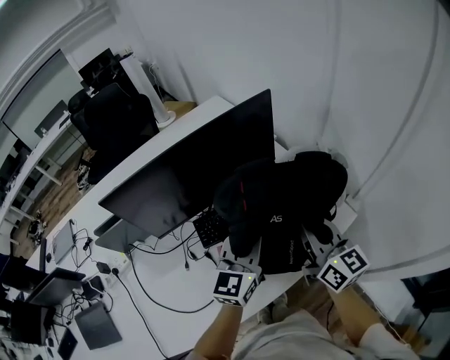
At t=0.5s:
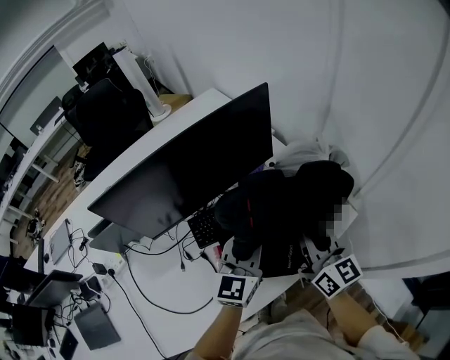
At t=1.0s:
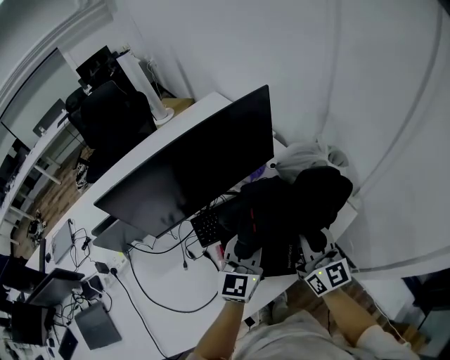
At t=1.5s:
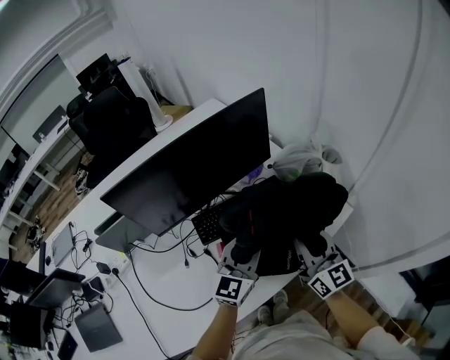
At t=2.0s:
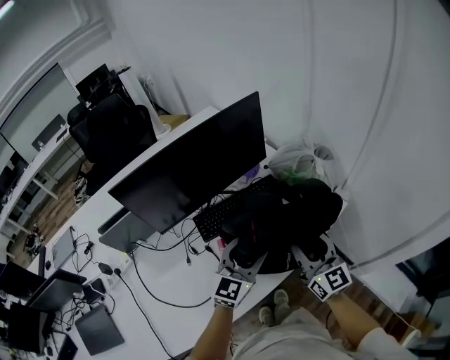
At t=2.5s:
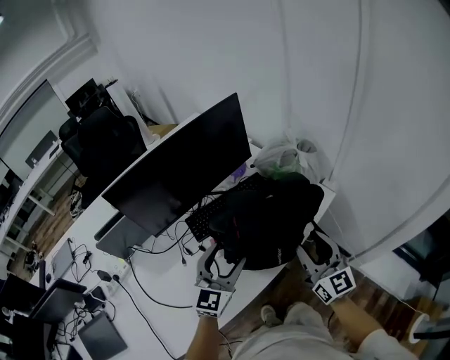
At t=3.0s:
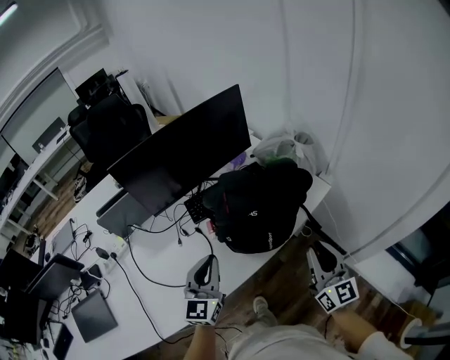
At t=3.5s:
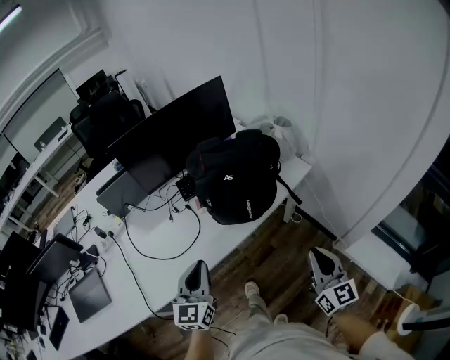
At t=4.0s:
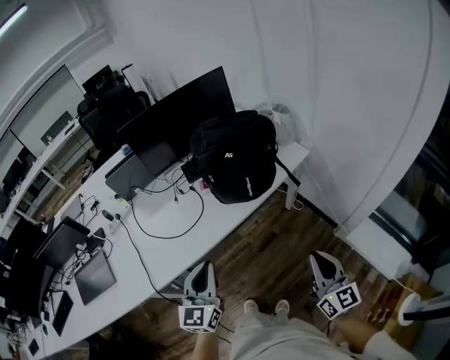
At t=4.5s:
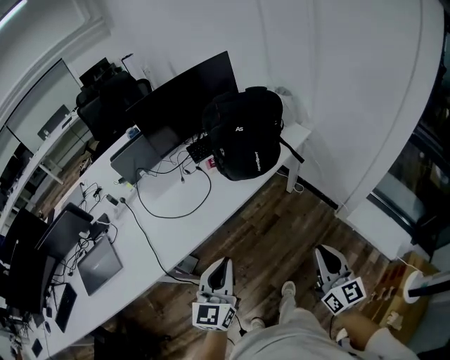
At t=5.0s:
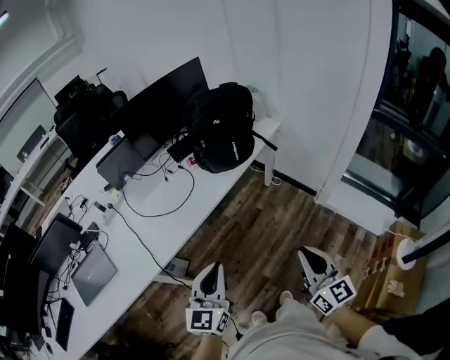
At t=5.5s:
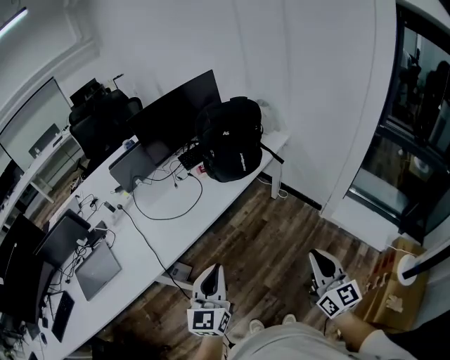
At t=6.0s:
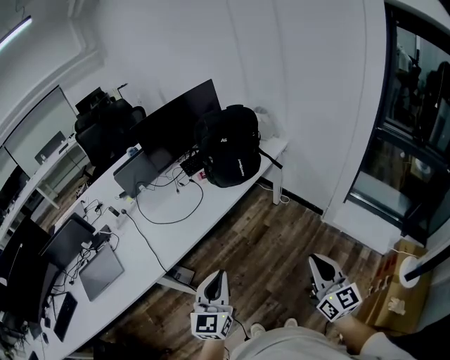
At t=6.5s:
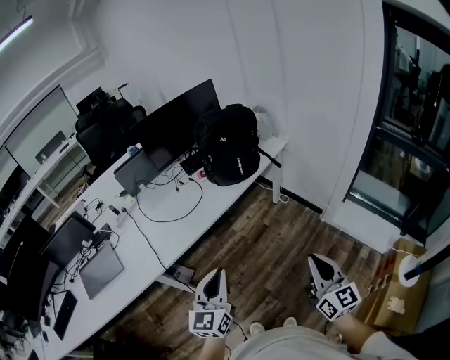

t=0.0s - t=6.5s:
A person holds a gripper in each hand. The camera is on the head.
t=0.0s - t=2.0s: The grippers both shift backward and downward by roughly 10 cm. The left gripper opens up. The right gripper opens its fingers.
t=2.0s - t=4.5s: The pair of grippers is taken backward, approximately 50 cm. The left gripper closes, while the right gripper closes up.
t=4.5s - t=6.5s: The two grippers go approximately 15 cm backward.

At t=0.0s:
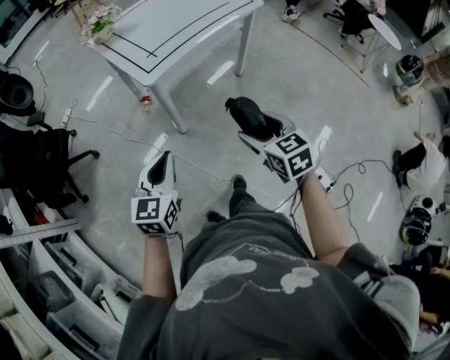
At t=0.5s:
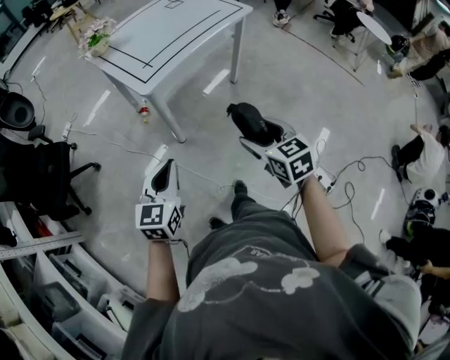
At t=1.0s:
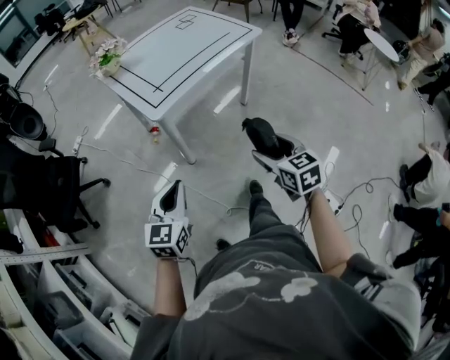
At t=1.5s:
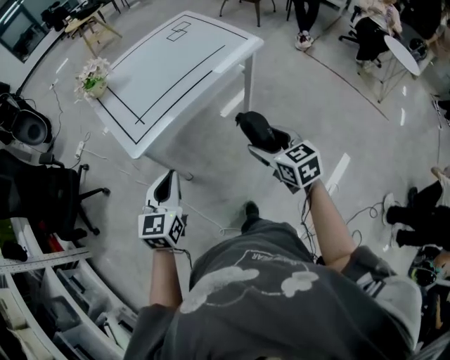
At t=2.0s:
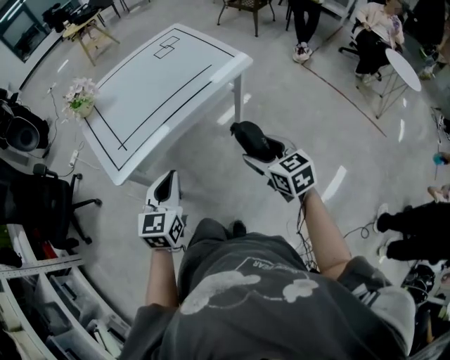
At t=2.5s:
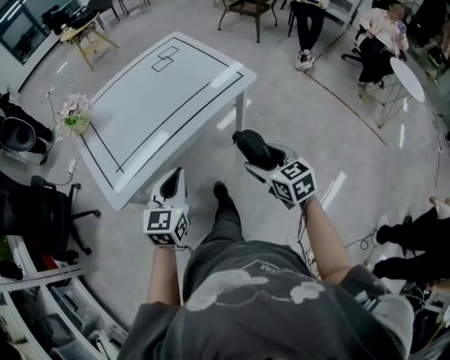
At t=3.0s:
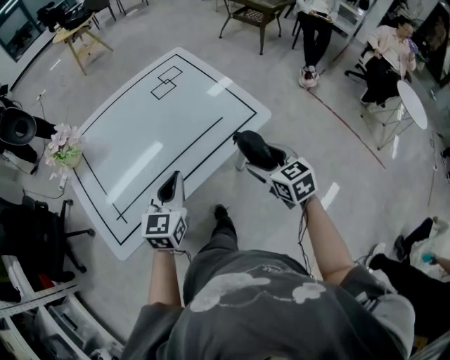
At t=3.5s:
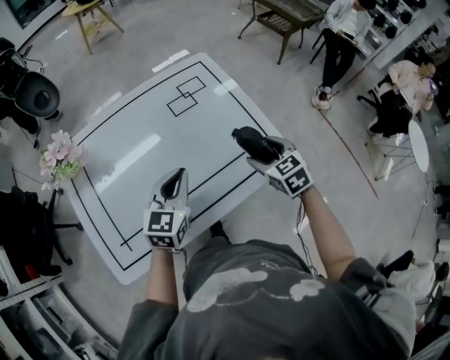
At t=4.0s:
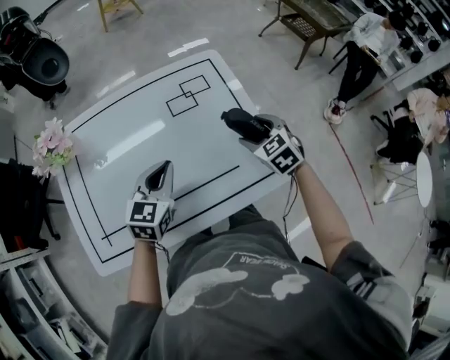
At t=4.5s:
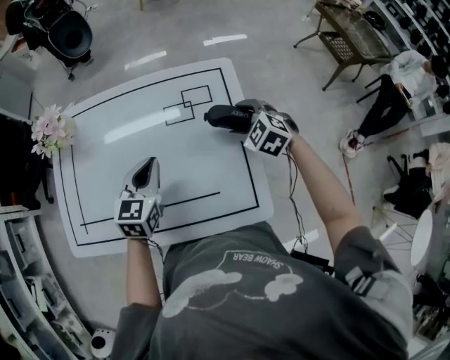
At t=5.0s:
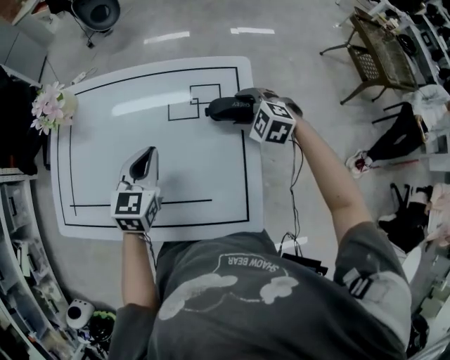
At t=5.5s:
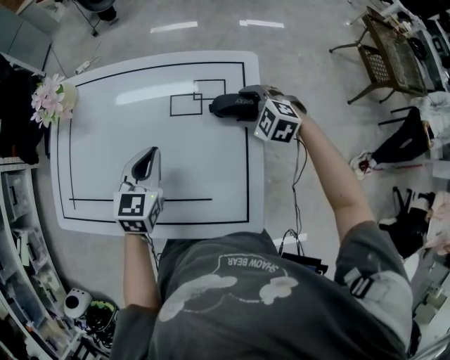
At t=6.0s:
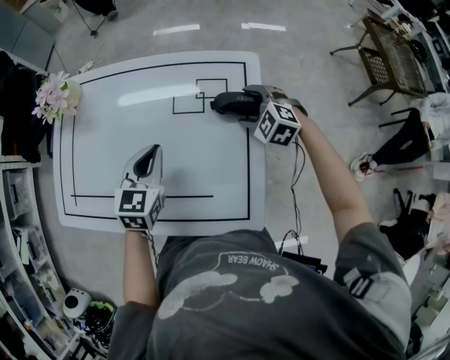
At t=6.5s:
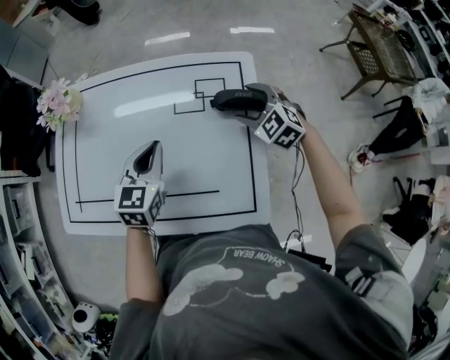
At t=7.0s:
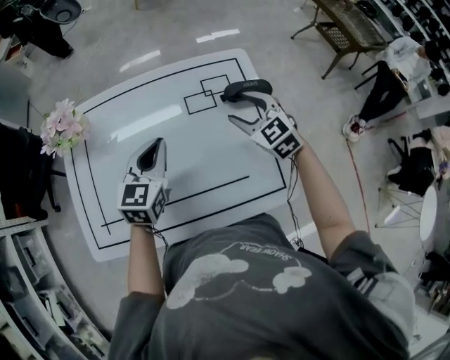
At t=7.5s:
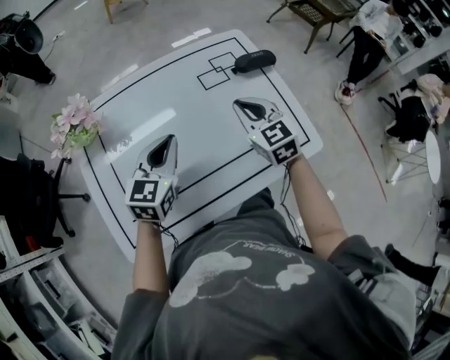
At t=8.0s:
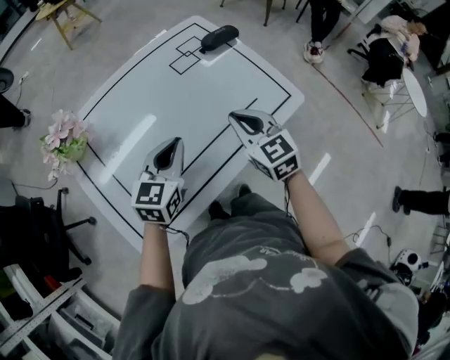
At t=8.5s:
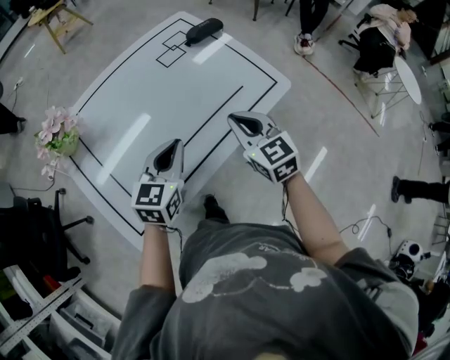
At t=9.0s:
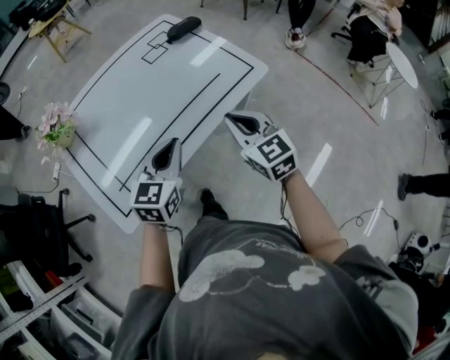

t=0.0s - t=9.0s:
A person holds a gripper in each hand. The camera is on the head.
t=0.0s - t=2.0s: The grippers both shift forward and to the right by some 35 cm.
t=2.0s - t=4.5s: The two grippers travel together, roughly 60 cm. The left gripper swivels approximately 30 degrees. The right gripper rolls counterclockwise, seen from behind, by approximately 60 degrees.
t=4.5s - t=7.0s: The left gripper moves about 5 cm; the right gripper heads to the left and upward, covering some 10 cm, and swivels some 30 degrees.
t=7.0s - t=9.0s: The right gripper ends up approximately 40 cm from where it was, rotates roughly 40 degrees, and closes its fingers; the left gripper shifts by some 30 cm, and changes its angle by some 30 degrees.

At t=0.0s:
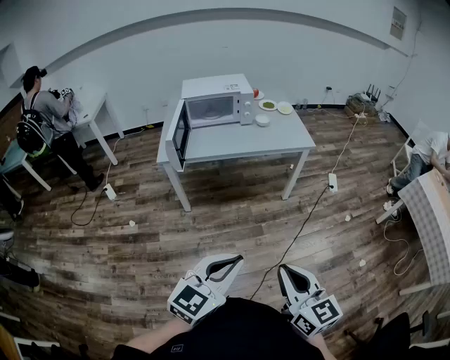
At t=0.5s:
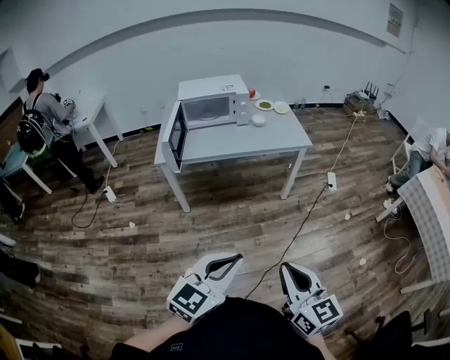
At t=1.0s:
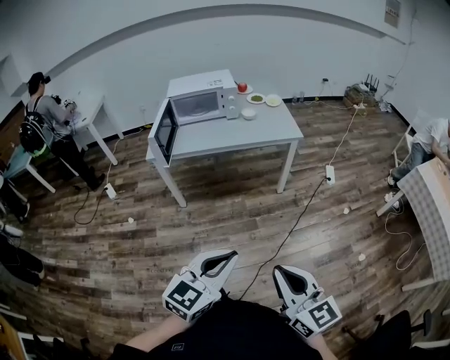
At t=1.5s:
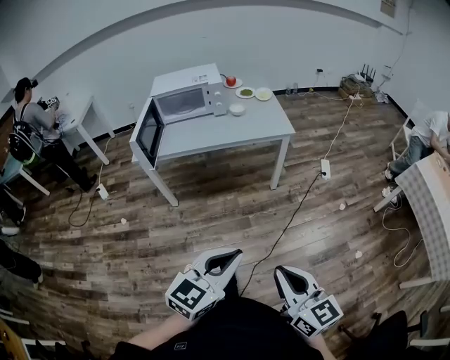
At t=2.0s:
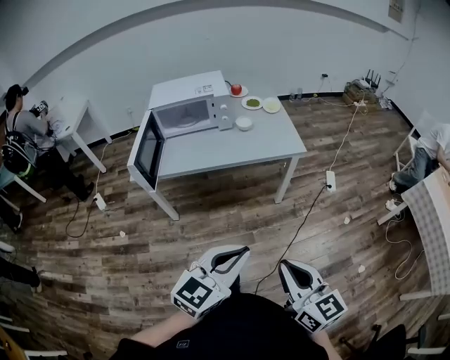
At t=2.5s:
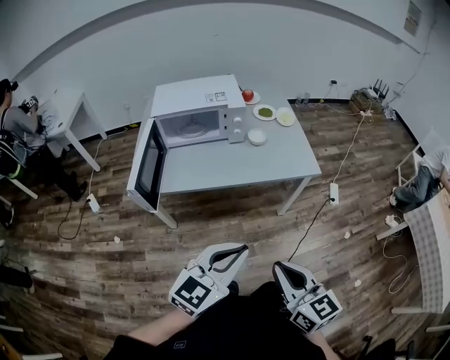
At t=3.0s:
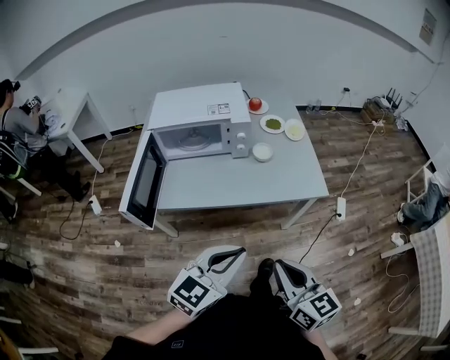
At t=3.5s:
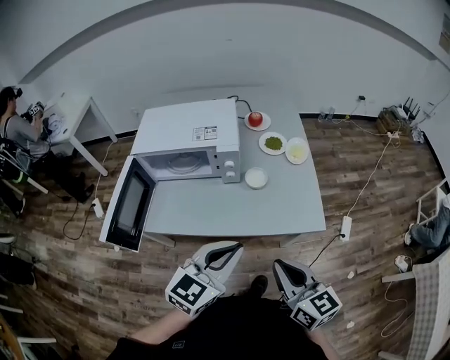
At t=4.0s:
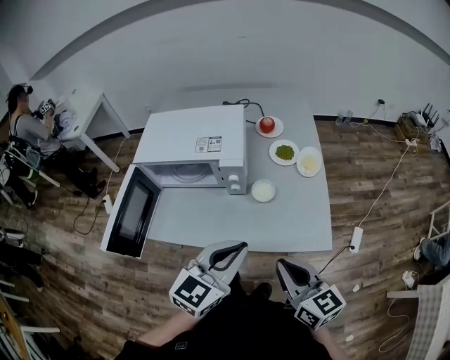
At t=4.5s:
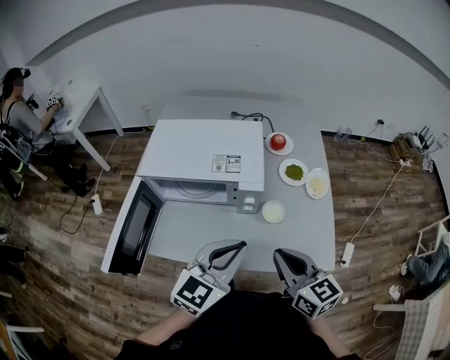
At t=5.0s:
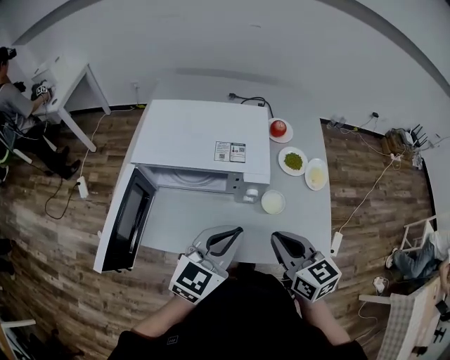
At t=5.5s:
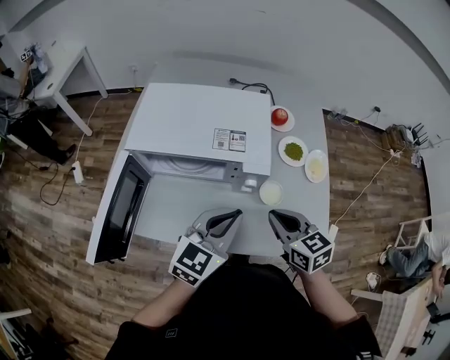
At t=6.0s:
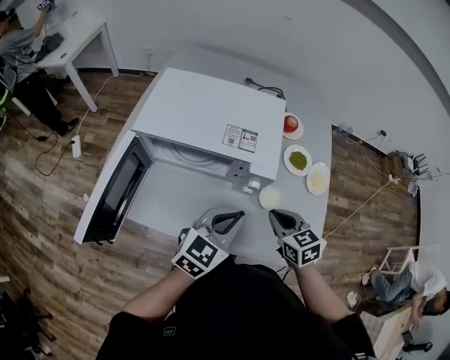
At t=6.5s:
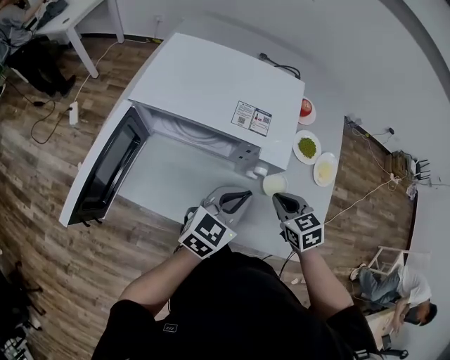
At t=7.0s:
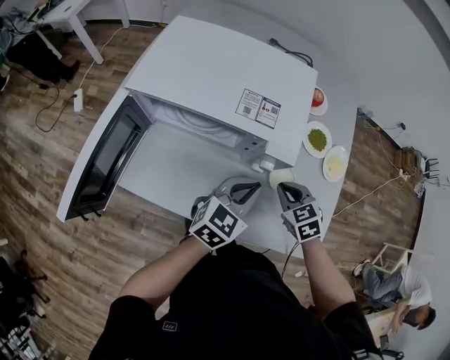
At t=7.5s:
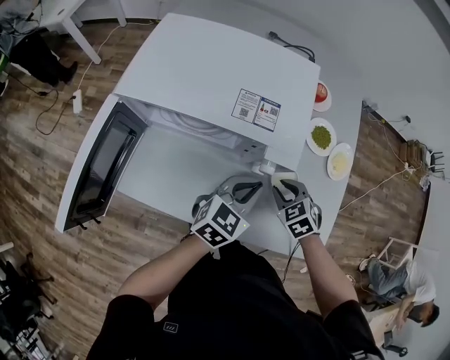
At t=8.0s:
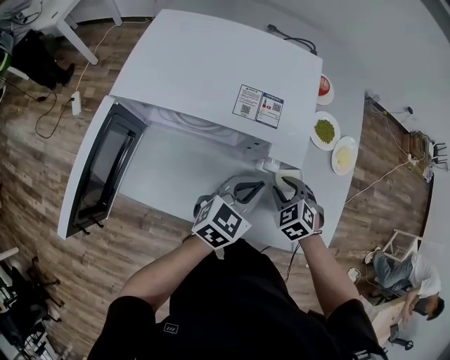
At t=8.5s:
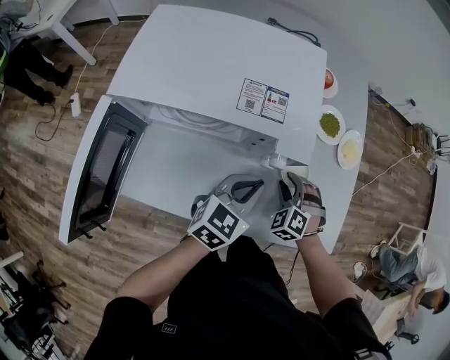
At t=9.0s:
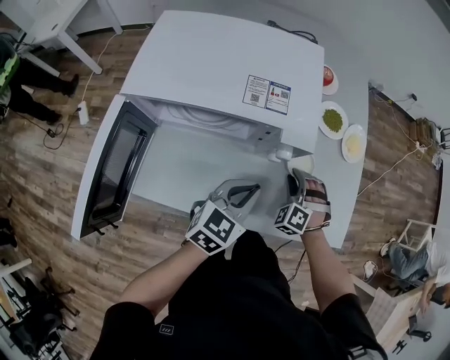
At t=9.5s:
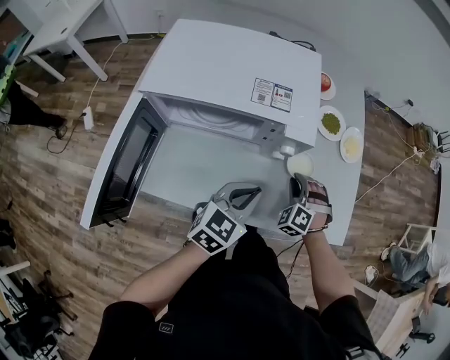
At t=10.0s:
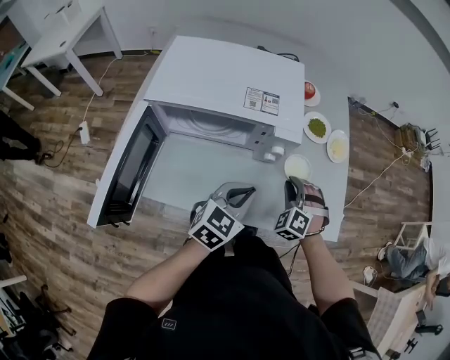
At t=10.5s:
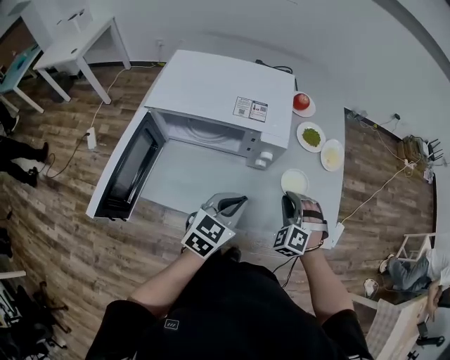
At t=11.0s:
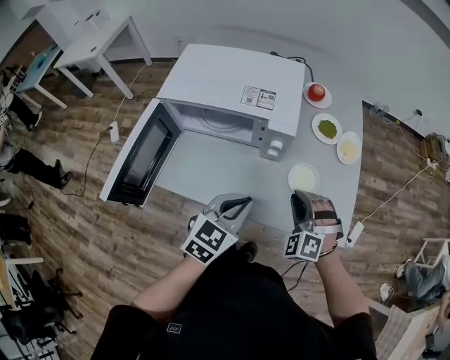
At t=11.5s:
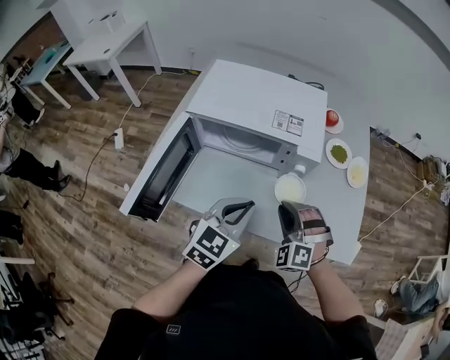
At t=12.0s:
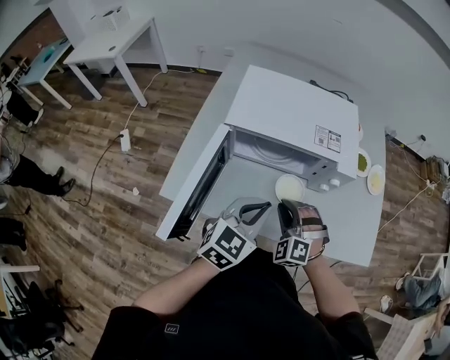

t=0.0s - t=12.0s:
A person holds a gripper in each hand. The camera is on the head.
t=0.0s - t=2.0s: The grippers both shift forward and to the right by about 20 cm.
t=2.0s - t=4.0s: The pair of grippers is taken forward, roughly 50 cm.
t=4.0s - t=6.0s: The left gripper shifts roughly 20 cm forward, to the left and downward; the right gripper is displaced forward and downward by about 25 cm, and swivels about 30 degrees.
t=6.0s - t=8.0s: The right gripper heads downward, covering about 15 cm, turns by approximately 40 degrees, and opens its fingers; the left gripper is displaced downward and forward by roughly 15 cm.
t=8.0s - t=10.0s: The left gripper heads backward, covering about 10 cm. The right gripper travels upward by roughly 5 cm, and swivels roughly 30 degrees.
t=10.0s - t=12.0s: The left gripper goes roughly 15 cm to the left and upward. Meanwhile the right gripper shifts approximately 25 cm to the left and backward.
